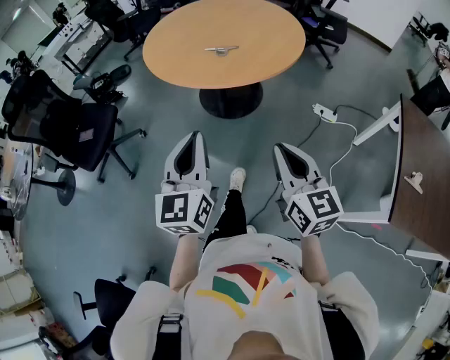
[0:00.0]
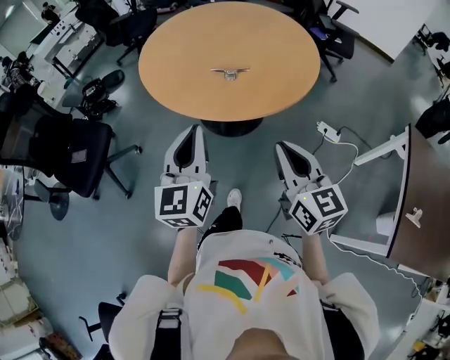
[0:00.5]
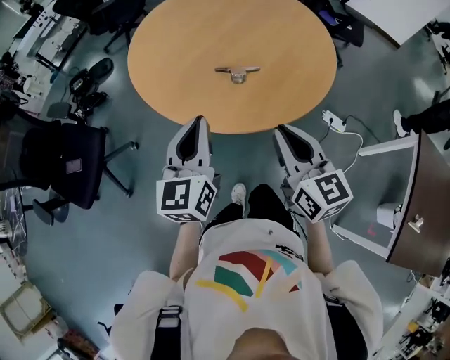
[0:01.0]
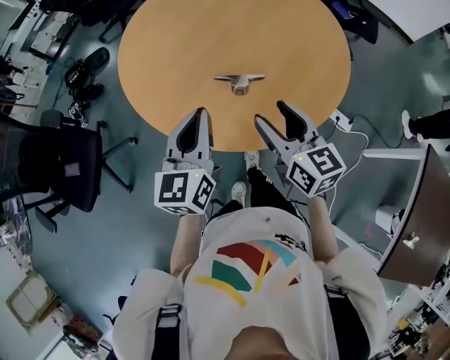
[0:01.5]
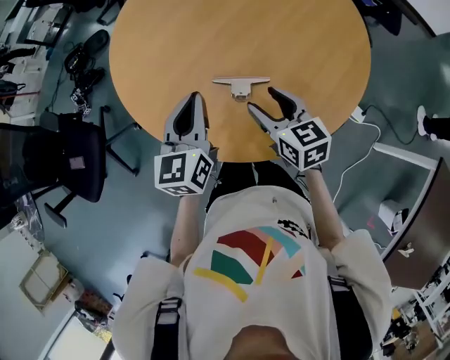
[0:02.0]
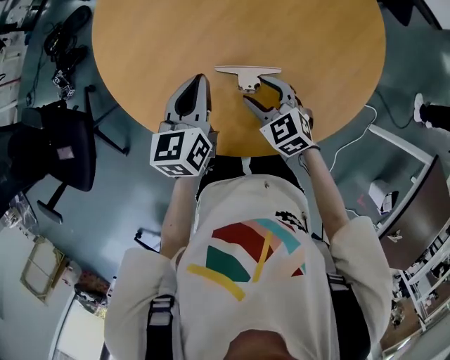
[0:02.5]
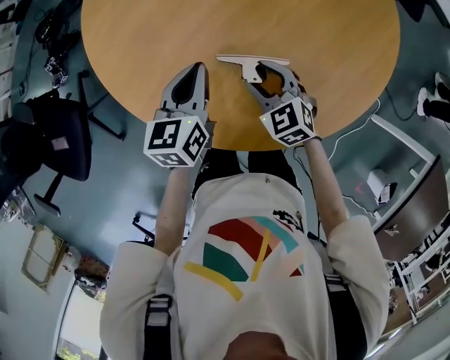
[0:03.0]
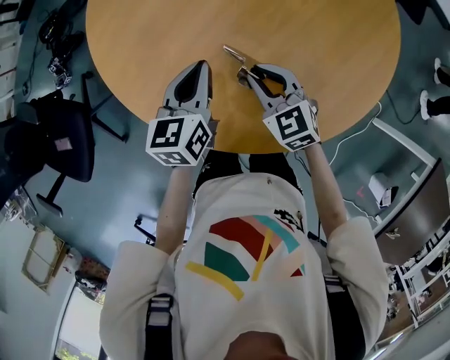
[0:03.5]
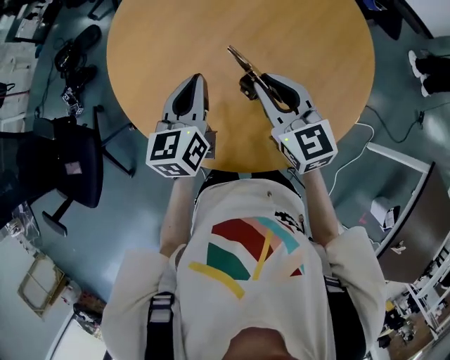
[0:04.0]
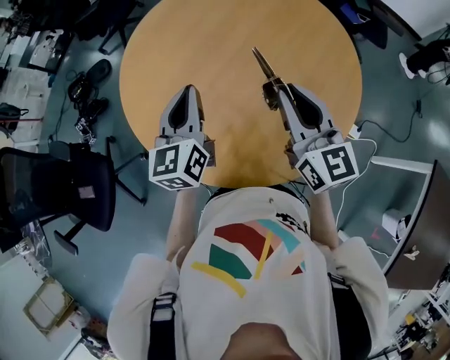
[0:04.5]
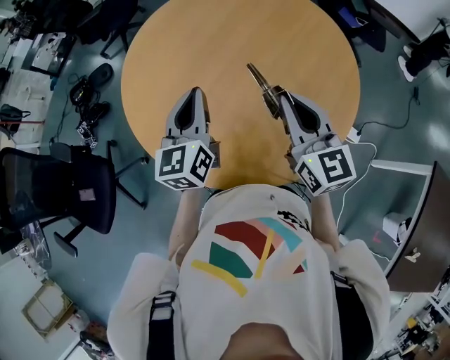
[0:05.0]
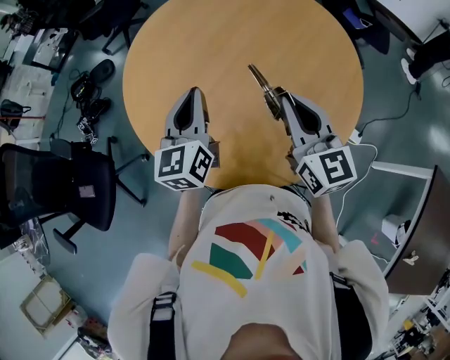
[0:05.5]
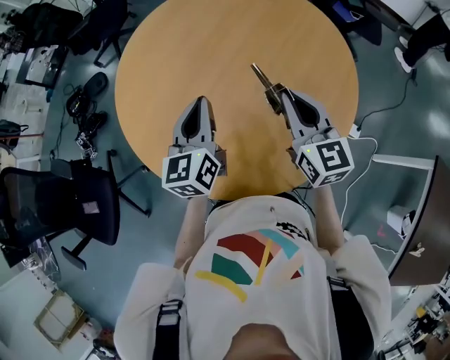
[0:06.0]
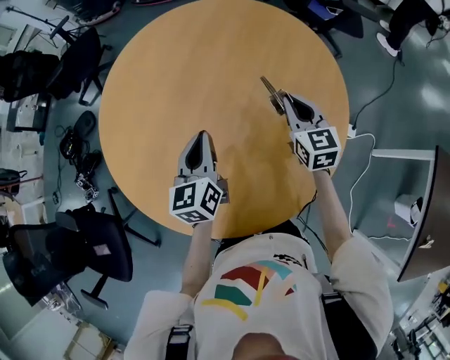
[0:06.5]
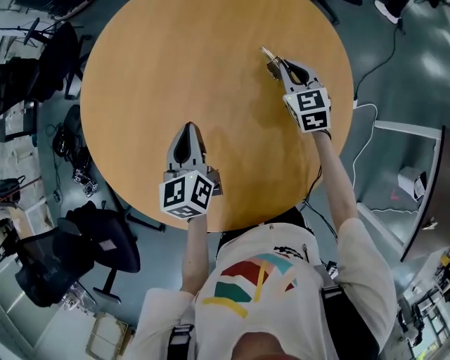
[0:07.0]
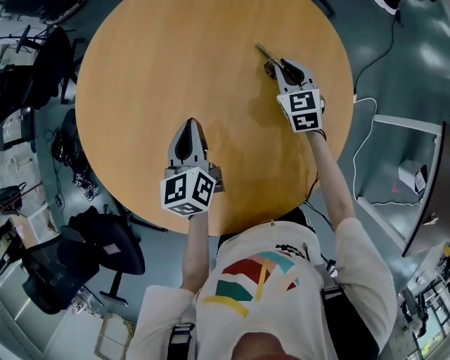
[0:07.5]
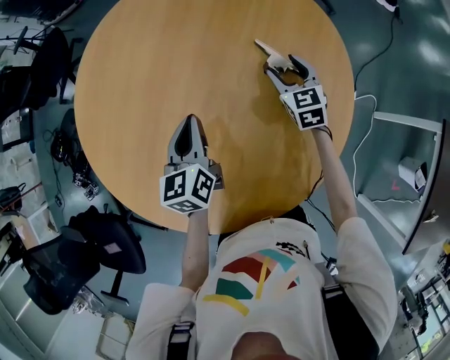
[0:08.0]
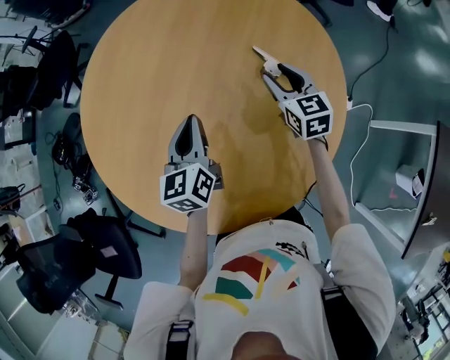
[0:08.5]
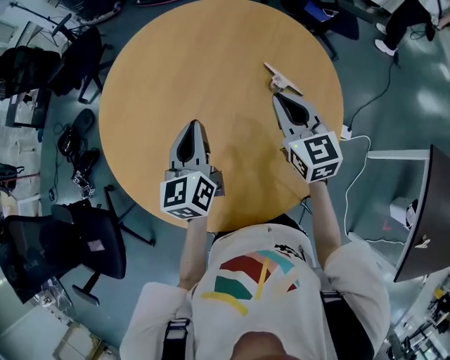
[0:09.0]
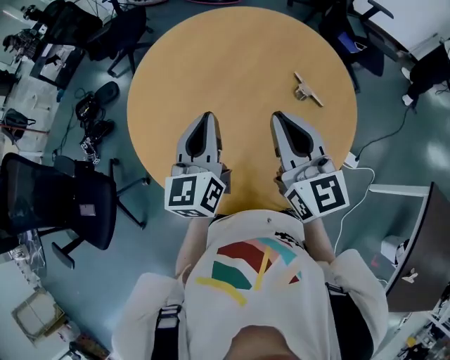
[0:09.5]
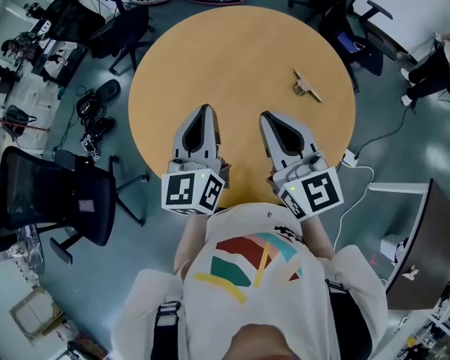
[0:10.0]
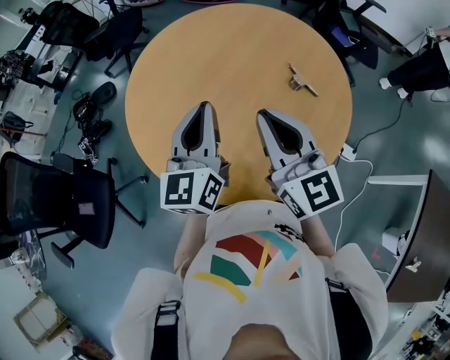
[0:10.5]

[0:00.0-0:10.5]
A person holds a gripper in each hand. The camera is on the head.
0:00.0 to 0:02.0: Both grippers are carried forward, approximately 70 cm. The right gripper turns by approximately 30 degrees, and opens.
0:02.0 to 0:04.0: Both grippers move forward, about 10 cm. The right gripper travels downward and back again, approximately 15 cm each way, and closes its fingers, while the left gripper travels downward and back again, about 15 cm each way.
0:04.0 to 0:06.5: The left gripper moves to the right and forward, about 15 cm. The right gripper travels to the right and forward by some 25 cm, and rotates approximately 30 degrees.
0:06.5 to 0:08.5: Both grippers travel together forward, about 5 cm. The right gripper opens.
0:08.5 to 0:10.5: Both grippers travel together backward, upward and to the left, roughly 35 cm. The left gripper rotates roughly 30 degrees. Meanwhile the right gripper rotates roughly 30 degrees, and closes up.

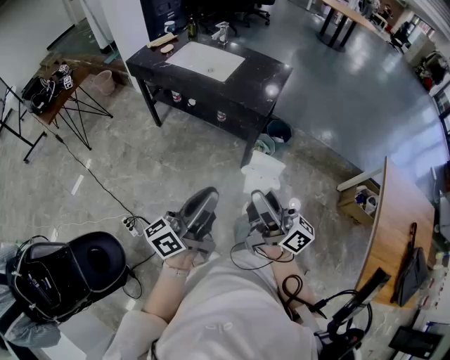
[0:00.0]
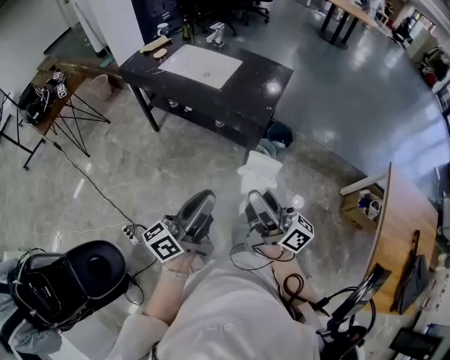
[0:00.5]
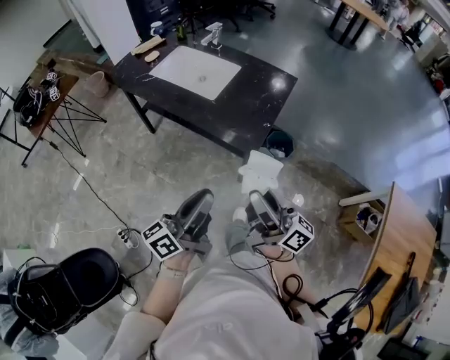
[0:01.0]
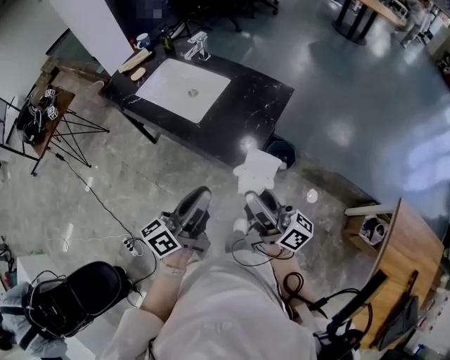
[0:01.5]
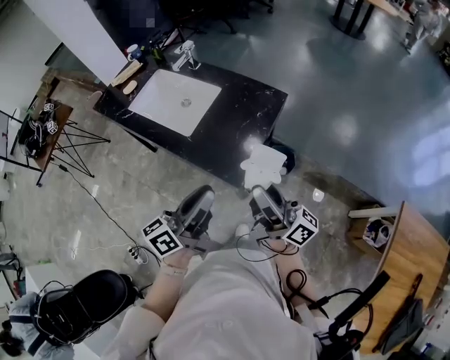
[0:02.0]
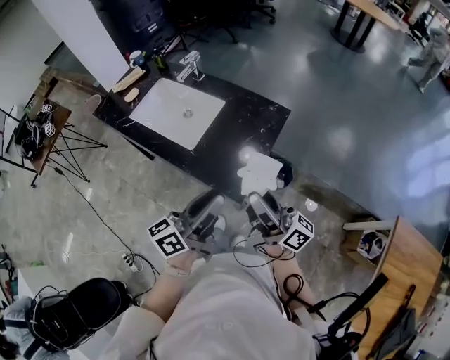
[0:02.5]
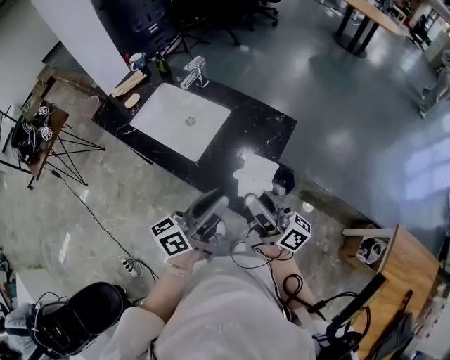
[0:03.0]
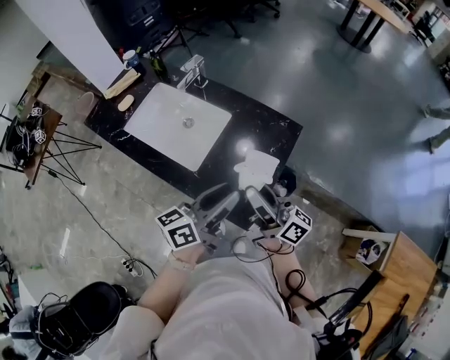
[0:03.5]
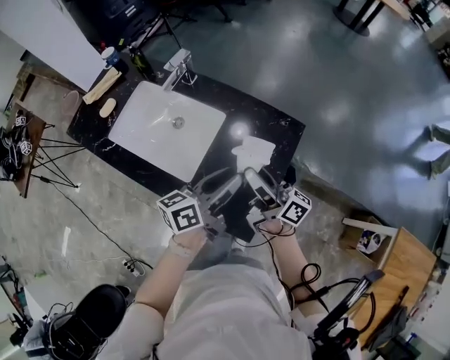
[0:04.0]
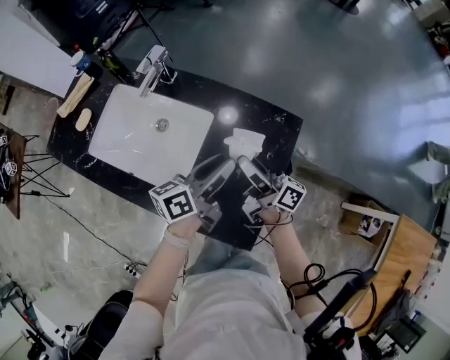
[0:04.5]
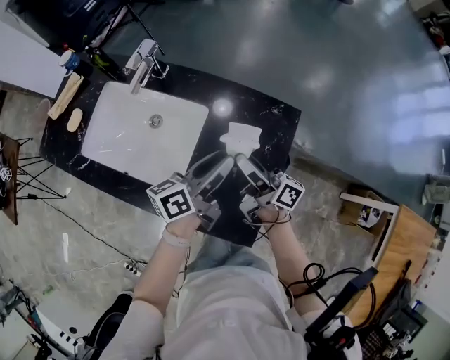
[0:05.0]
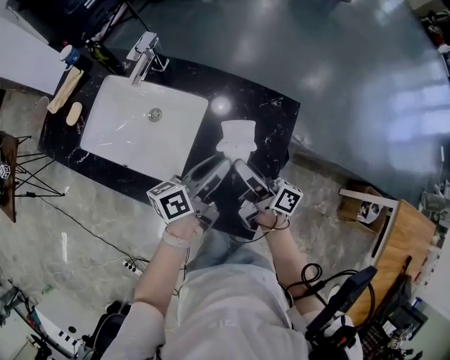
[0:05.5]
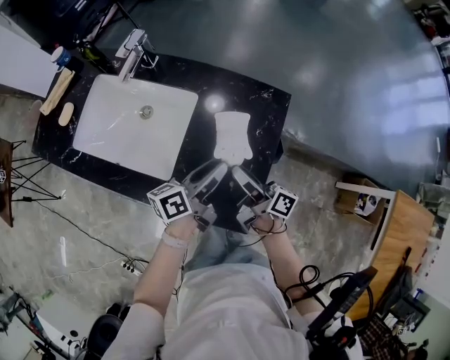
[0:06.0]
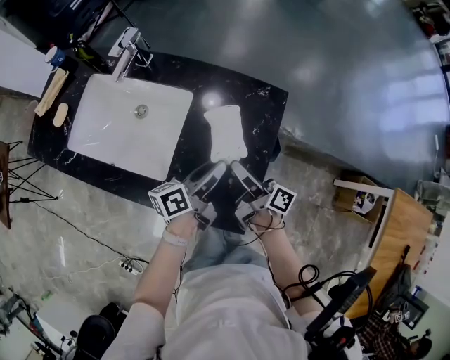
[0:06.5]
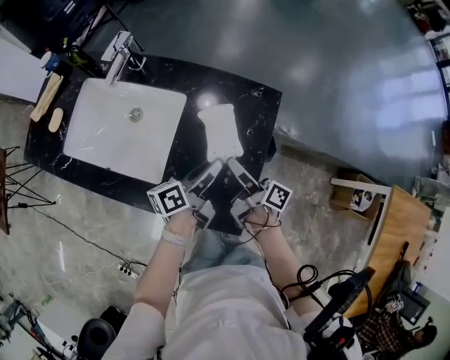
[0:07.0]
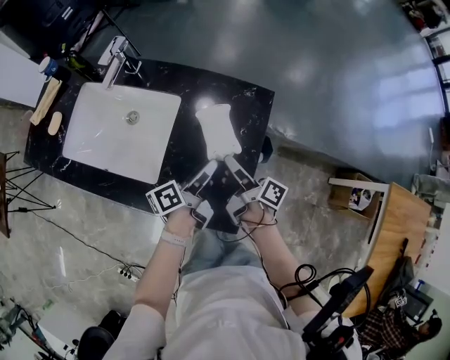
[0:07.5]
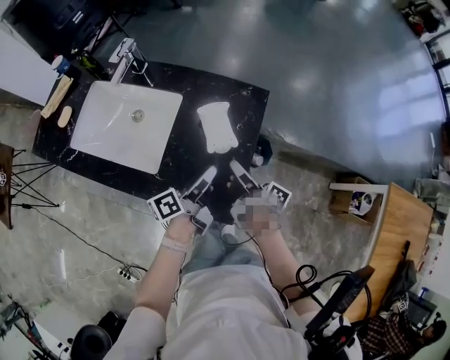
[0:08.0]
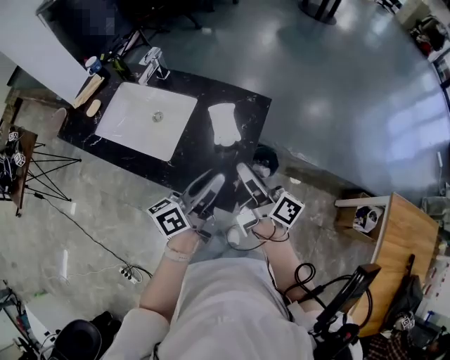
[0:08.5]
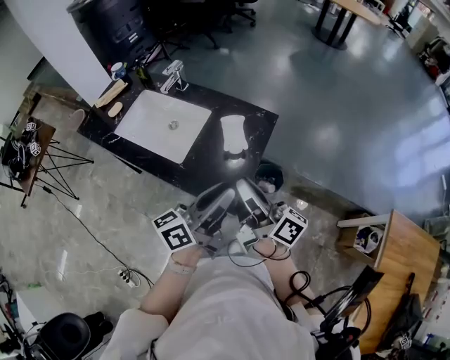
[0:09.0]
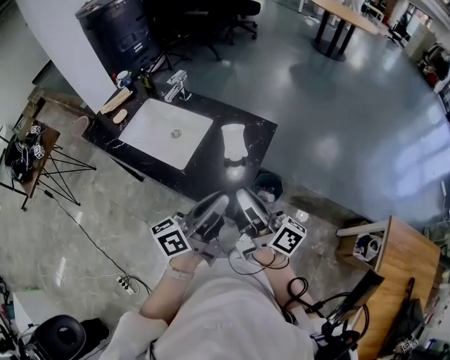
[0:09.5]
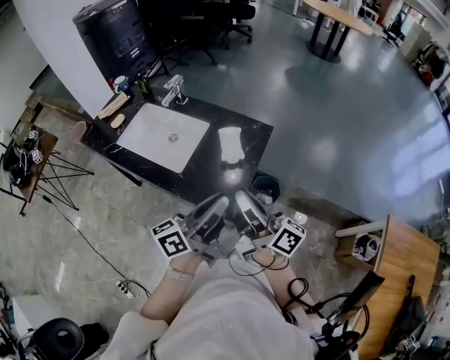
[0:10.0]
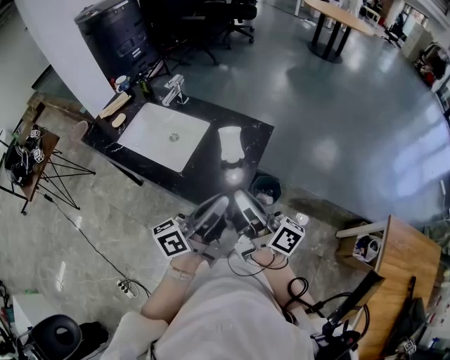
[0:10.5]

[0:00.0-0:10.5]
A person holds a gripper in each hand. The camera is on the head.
0:00.0 to 0:02.0: The pair of grippers is taken forward and to the right, approximately 50 cm.
0:02.0 to 0:04.0: Both grippers travel together forward, some 30 cm.
0:04.0 to 0:06.5: Both grippers travel together downward, some 15 cm. The right gripper turns by about 20 degrees.
0:06.5 to 0:08.5: The grippers both shift upward and backward by about 20 cm. The right gripper closes up.
0:08.5 to 0:10.5: Both grippers travel together backward and upward, some 15 cm. The left gripper closes.

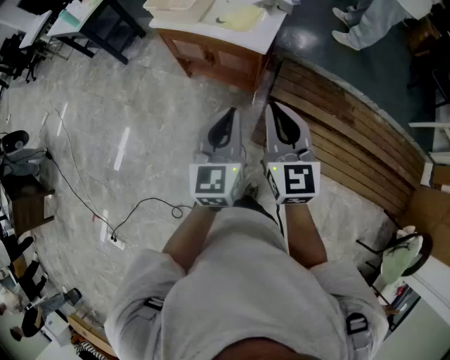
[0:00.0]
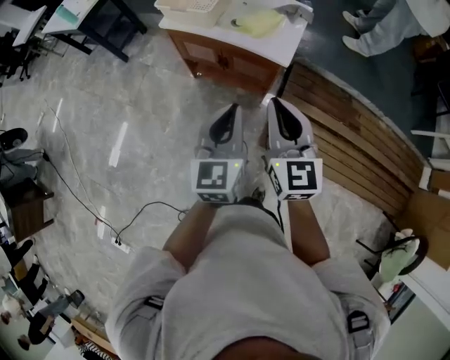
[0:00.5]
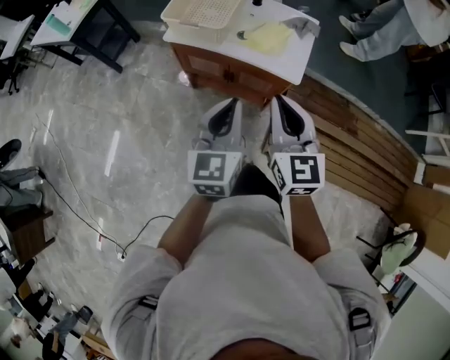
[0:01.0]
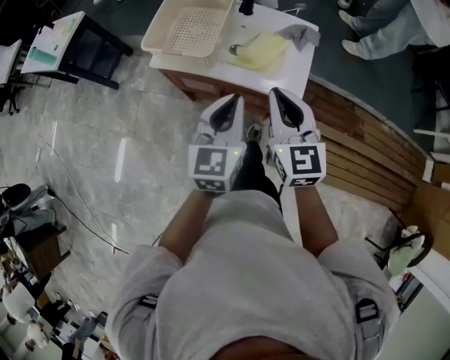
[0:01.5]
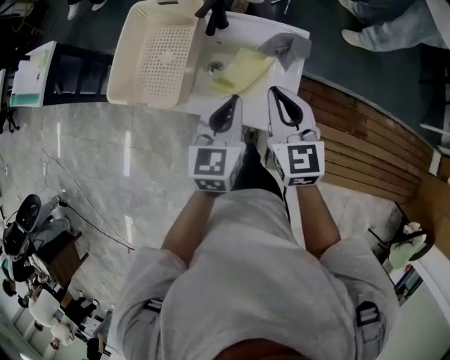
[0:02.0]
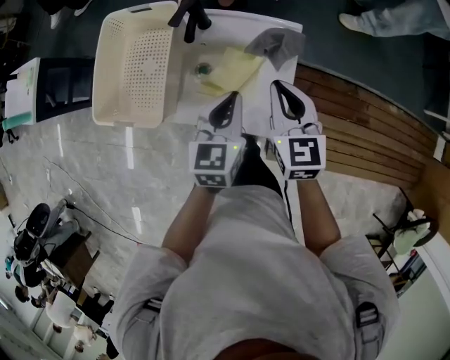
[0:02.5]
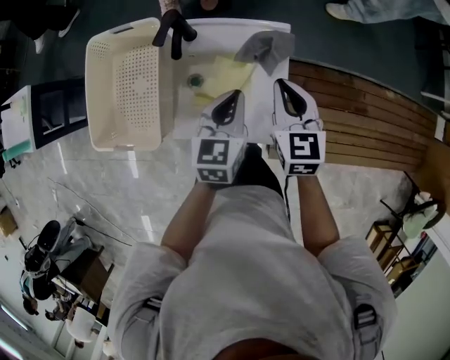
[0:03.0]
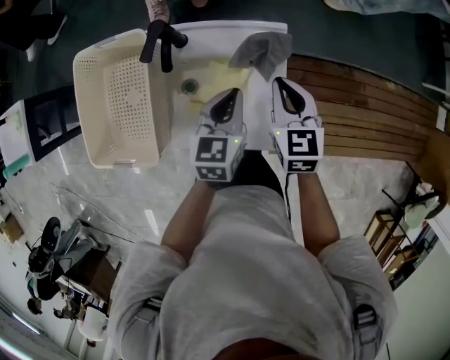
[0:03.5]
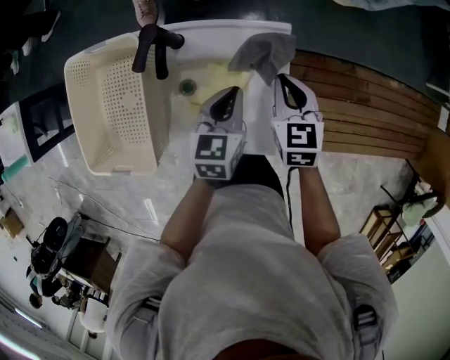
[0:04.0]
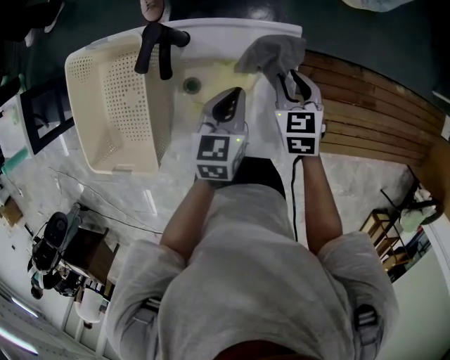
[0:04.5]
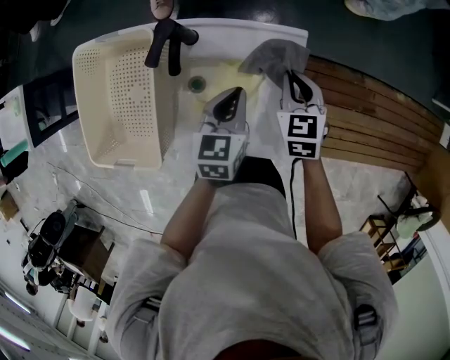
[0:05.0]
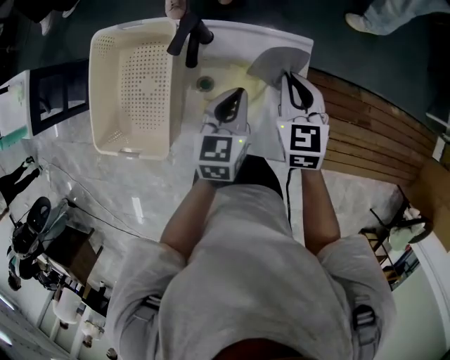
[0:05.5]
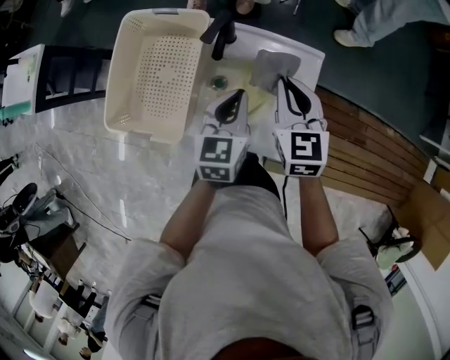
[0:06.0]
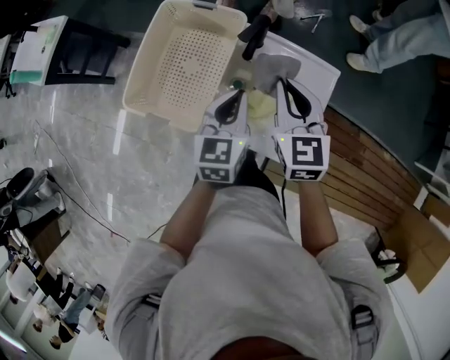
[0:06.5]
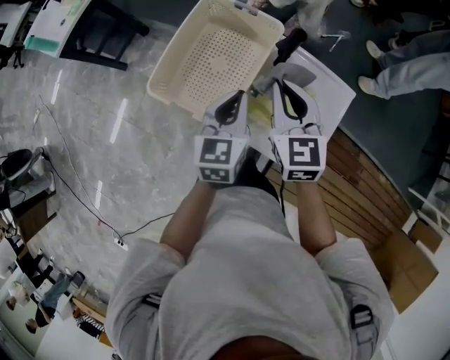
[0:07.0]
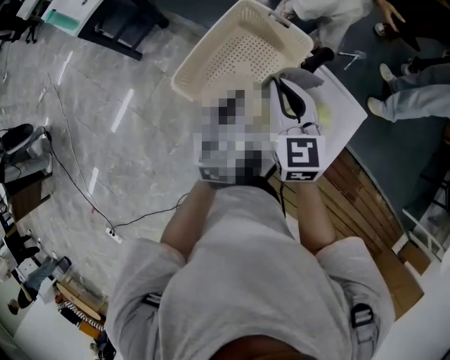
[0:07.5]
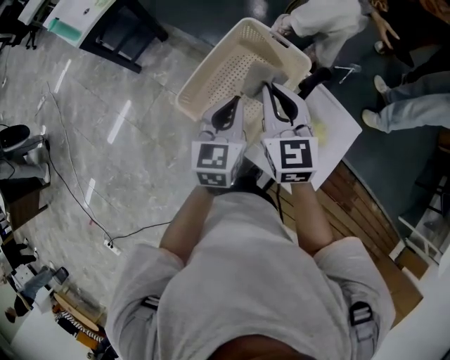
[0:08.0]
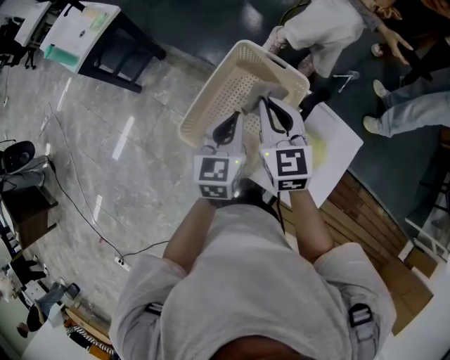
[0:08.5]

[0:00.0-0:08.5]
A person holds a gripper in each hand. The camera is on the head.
0:00.0 to 0:02.0: The two grippers travel together, forward, approximately 50 cm.
0:02.0 to 0:04.0: The right gripper goes about 20 cm forward, downward and to the right, and swivels some 30 degrees; the left gripper is displaced forward and downward by about 20 cm, and rotates roughly 20 degrees.
0:04.0 to 0:06.5: Both grippers move to the left and upward, roughly 20 cm. The right gripper changes its angle by some 30 degrees, and opens, then closes once more, while the left gripper turns by some 20 degrees.
0:06.5 to 0:08.5: Both grippers travel together to the left and forward, some 20 cm.
